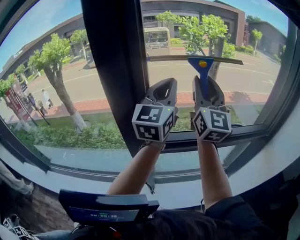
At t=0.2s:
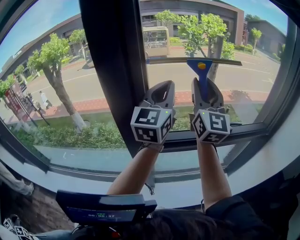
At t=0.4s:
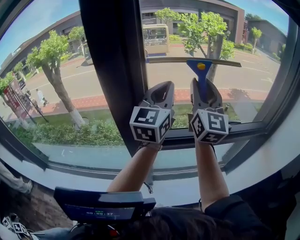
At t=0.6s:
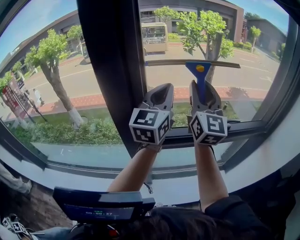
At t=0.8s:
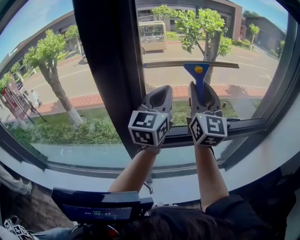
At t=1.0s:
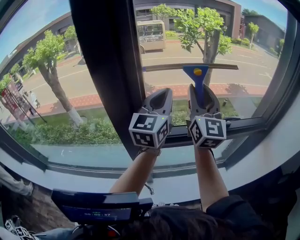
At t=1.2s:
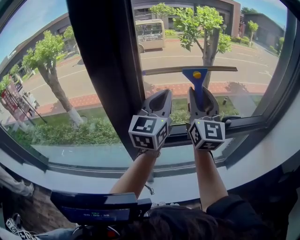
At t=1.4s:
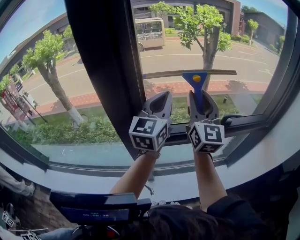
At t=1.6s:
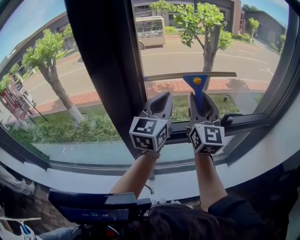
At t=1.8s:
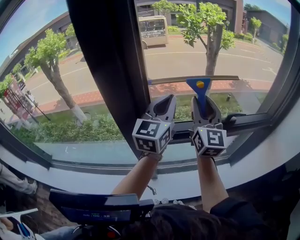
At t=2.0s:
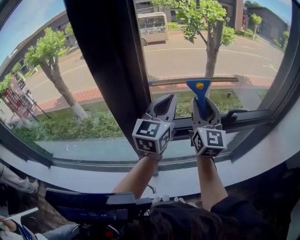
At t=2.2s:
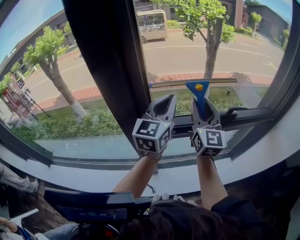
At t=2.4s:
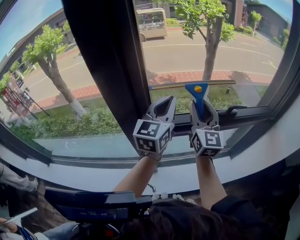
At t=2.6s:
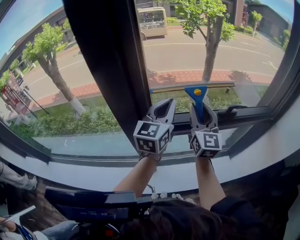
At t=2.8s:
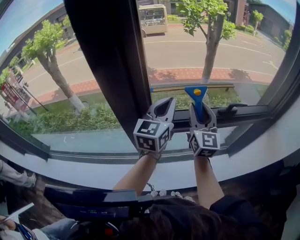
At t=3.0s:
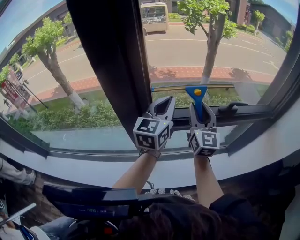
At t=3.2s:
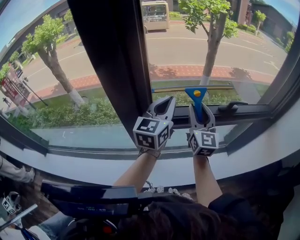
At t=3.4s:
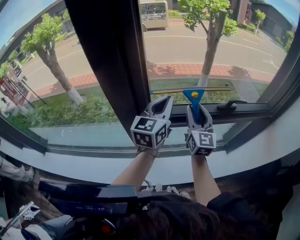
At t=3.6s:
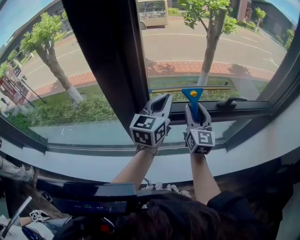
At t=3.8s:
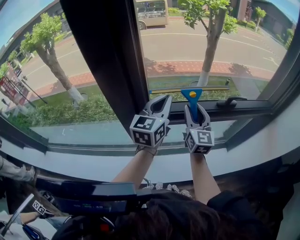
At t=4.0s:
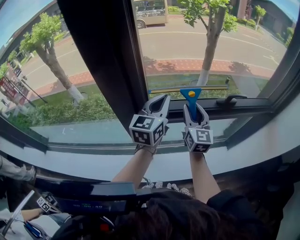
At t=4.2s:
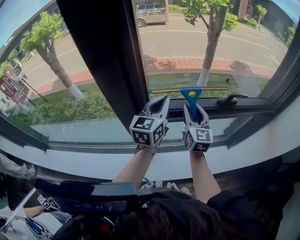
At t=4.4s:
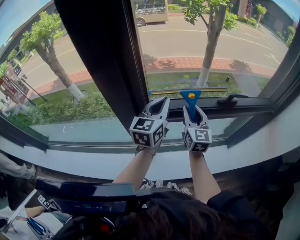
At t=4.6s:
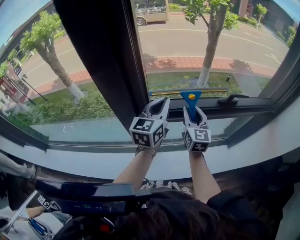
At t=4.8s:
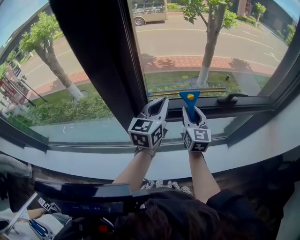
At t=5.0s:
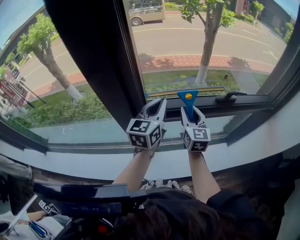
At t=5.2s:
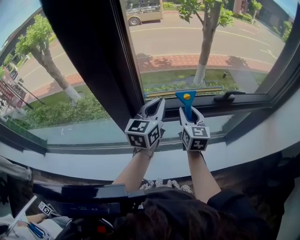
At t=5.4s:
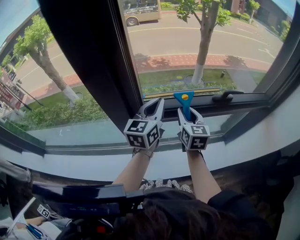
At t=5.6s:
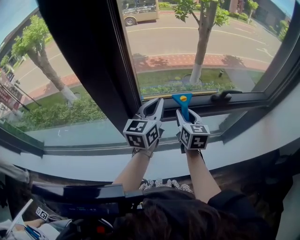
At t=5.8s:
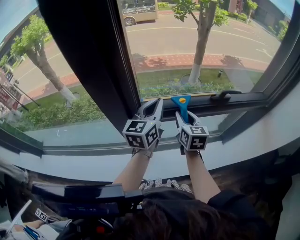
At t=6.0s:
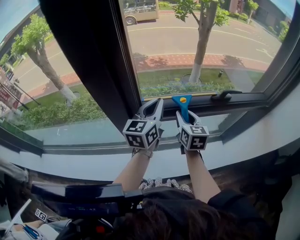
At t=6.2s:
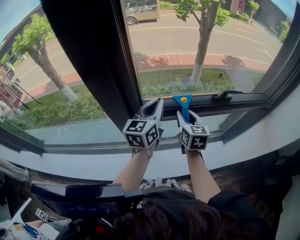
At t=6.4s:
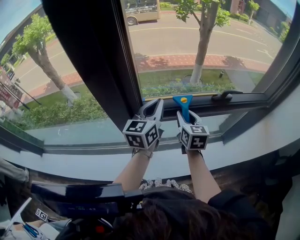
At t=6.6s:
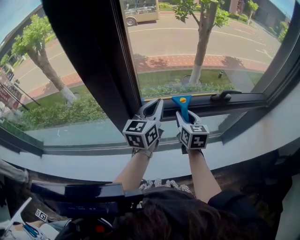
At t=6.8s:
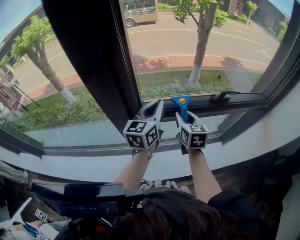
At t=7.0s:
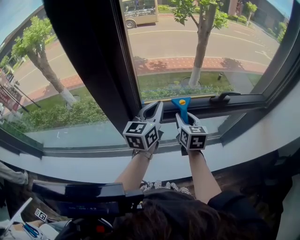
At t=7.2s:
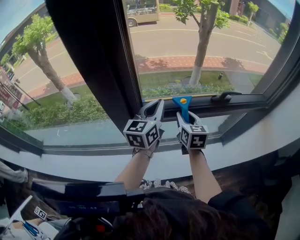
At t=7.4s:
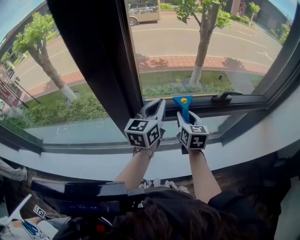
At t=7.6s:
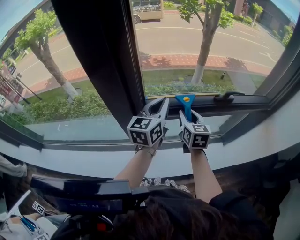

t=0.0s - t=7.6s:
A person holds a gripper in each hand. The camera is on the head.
t=0.0s - t=1.6s: The two grippers go some 10 cm downward.
t=1.6s - t=3.0s: Both grippers travel together downward, approximately 10 cm.
t=3.0s - t=4.6s: The left gripper travels downward by about 5 cm. Meanwhile the right gripper travels downward by roughly 10 cm.
t=4.6s - t=6.0s: The grippers make only small movements.
t=6.0s - t=7.6s: Both grippers stay put.

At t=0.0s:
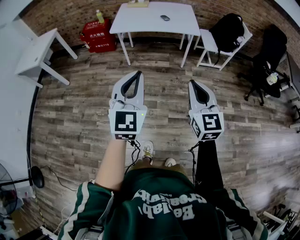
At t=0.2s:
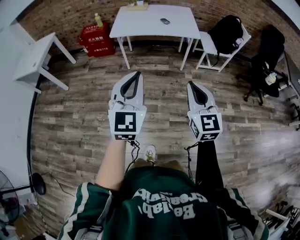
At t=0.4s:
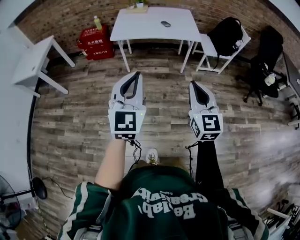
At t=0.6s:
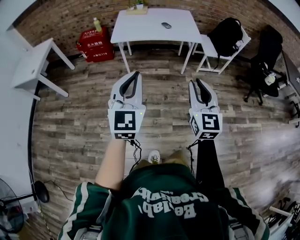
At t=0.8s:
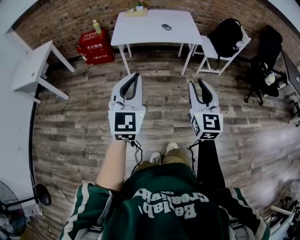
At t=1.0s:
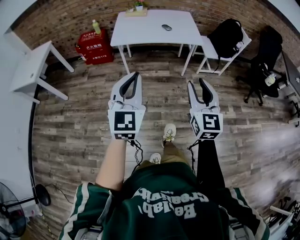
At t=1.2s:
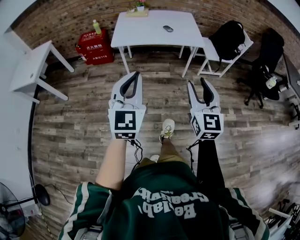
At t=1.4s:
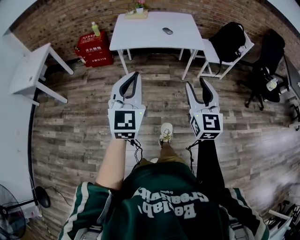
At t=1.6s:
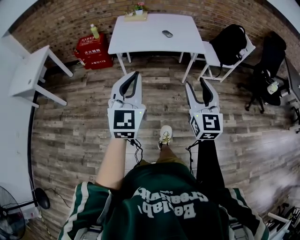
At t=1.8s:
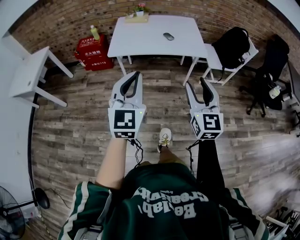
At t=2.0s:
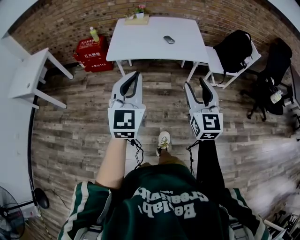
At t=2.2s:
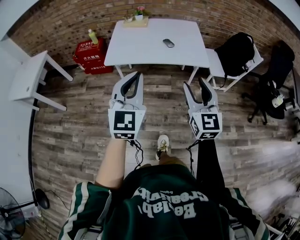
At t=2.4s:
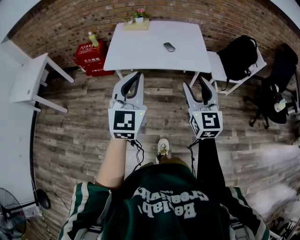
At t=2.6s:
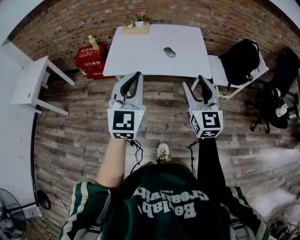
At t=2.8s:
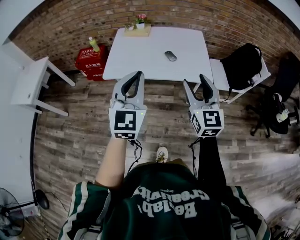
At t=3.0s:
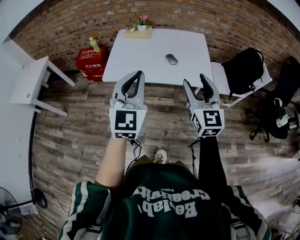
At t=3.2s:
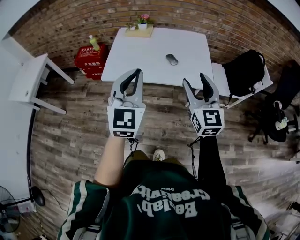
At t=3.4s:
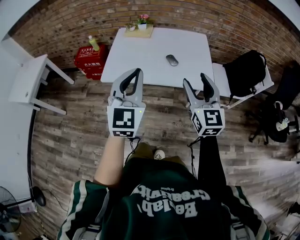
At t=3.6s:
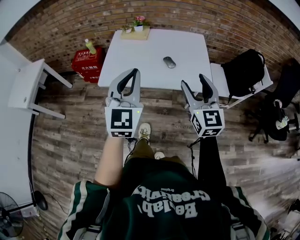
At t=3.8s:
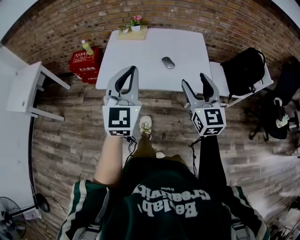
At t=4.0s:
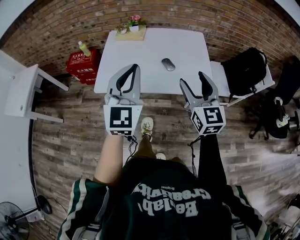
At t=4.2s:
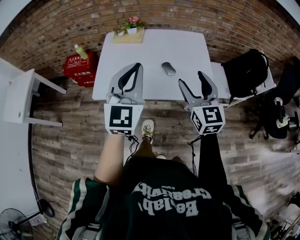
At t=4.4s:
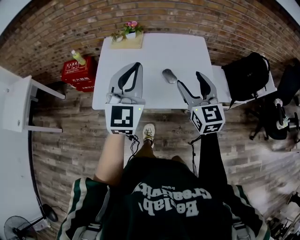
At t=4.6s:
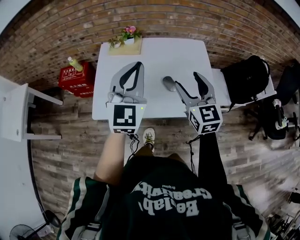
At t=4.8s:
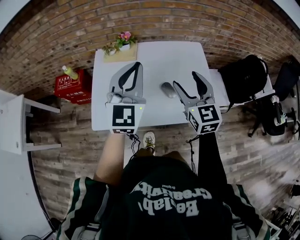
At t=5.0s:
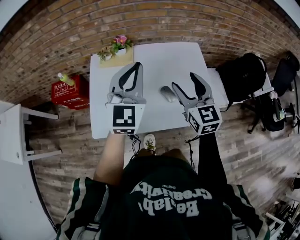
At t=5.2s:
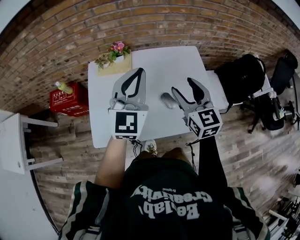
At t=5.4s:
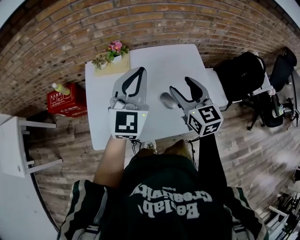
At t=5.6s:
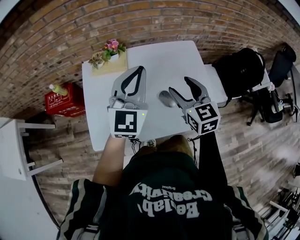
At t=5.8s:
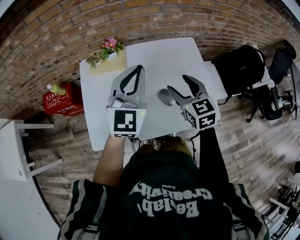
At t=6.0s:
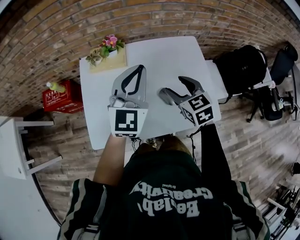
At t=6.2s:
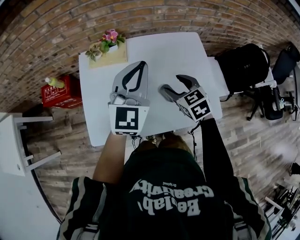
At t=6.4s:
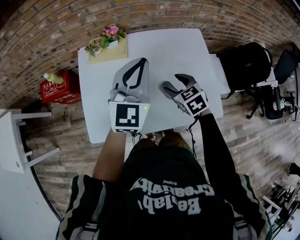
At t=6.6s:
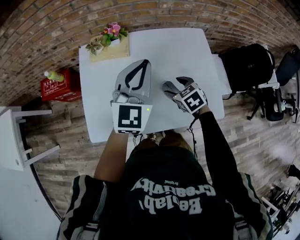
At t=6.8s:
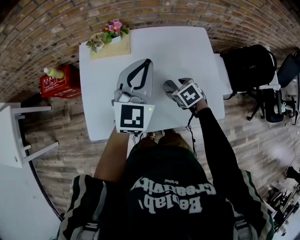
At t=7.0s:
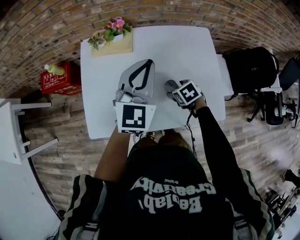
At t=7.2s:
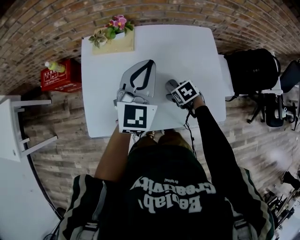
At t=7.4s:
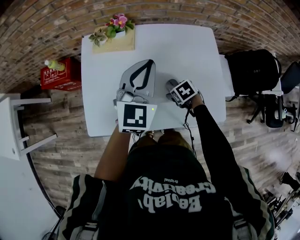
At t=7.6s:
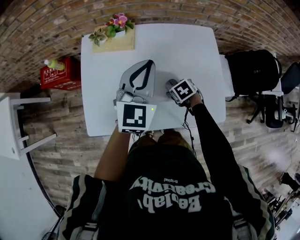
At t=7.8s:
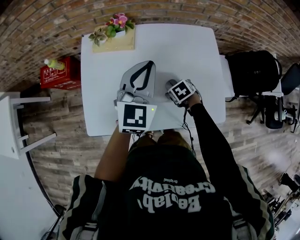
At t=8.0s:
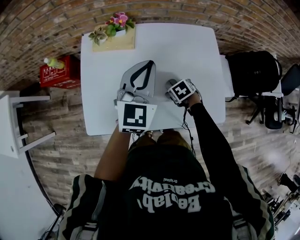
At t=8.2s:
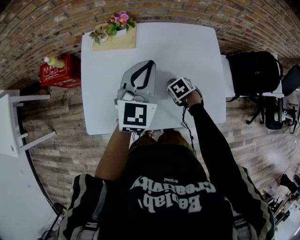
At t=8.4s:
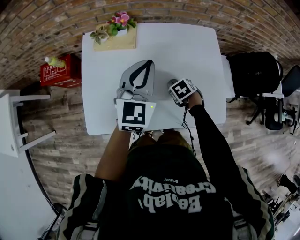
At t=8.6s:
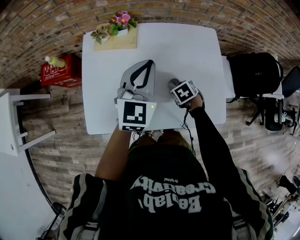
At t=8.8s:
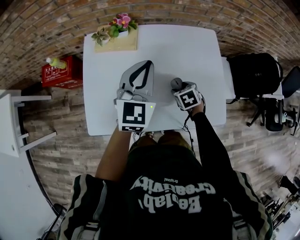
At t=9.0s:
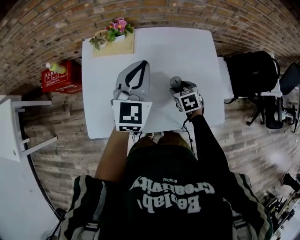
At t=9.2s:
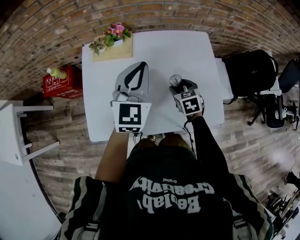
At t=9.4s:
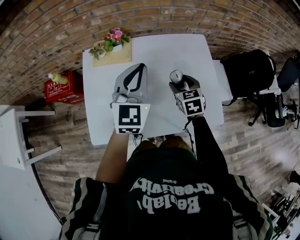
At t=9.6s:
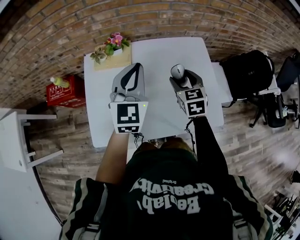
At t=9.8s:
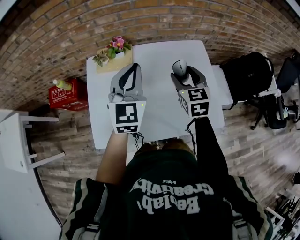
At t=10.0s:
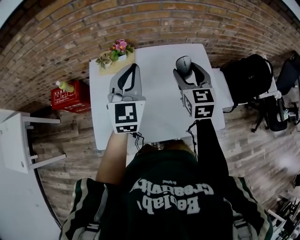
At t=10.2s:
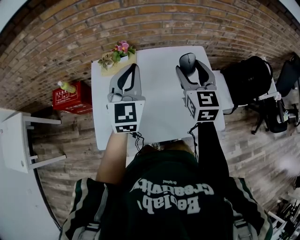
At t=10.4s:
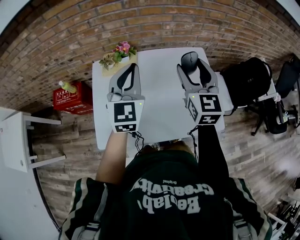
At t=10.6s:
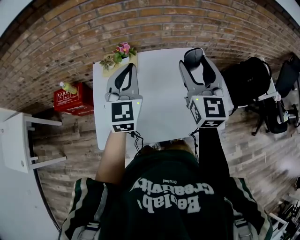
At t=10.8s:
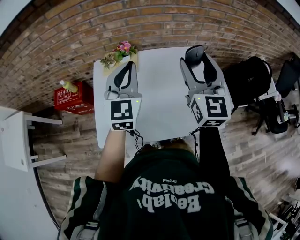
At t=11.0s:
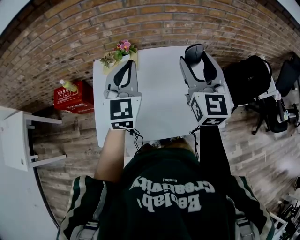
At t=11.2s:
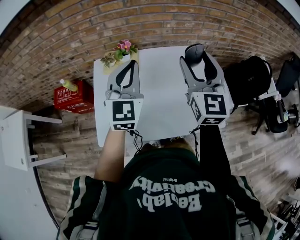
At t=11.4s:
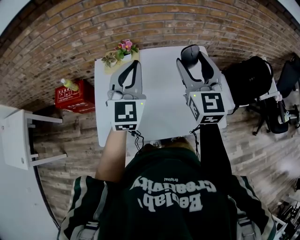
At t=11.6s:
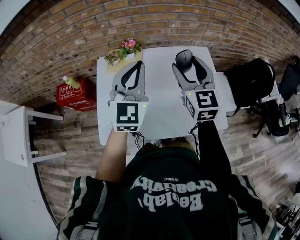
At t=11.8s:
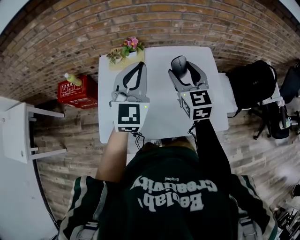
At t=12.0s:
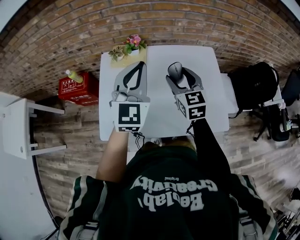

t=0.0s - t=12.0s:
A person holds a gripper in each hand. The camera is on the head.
t=0.0s - t=1.6s: The right gripper is displaced forward by some 20 cm, and opens, while the left gripper is displaced forward and to the left by approximately 20 cm.
t=1.6s - t=3.0s: The grippers both shift forward by about 30 cm.
t=3.0s - t=4.4s: Both grippers travel together forward, approximately 25 cm.
t=4.4s - t=6.0s: The left gripper shifts approximately 20 cm forward; the right gripper heads forward and downward, covering some 20 cm, and changes its angle by roughly 30 degrees.
t=6.0s - t=7.6s: The right gripper heads downward, covering about 25 cm, and tilts its fingers approximately 40 degrees downward. Meanwhile the left gripper shifts approximately 5 cm downward.
t=7.6s - t=9.0s: The right gripper ends up approximately 5 cm from where it was, and rotates approximately 20 degrees.
t=9.0s - t=10.4s: The left gripper is displaced upward by approximately 10 cm. The right gripper heads upward, covering about 35 cm, and angles its fingers upward, by about 50 degrees.
t=10.4s - t=12.0s: The right gripper travels downward and to the left by roughly 15 cm.

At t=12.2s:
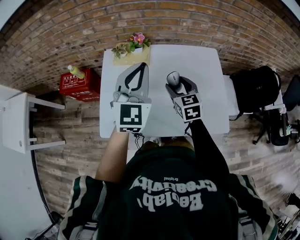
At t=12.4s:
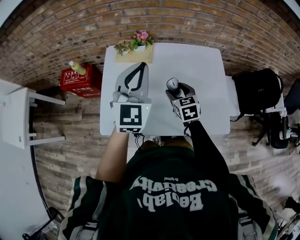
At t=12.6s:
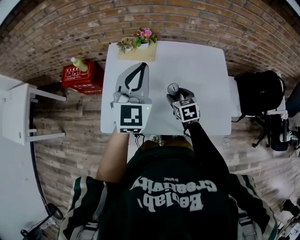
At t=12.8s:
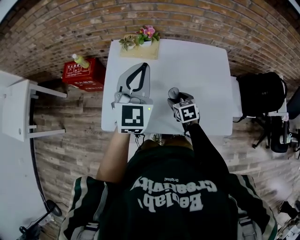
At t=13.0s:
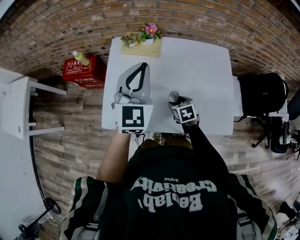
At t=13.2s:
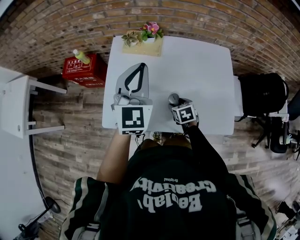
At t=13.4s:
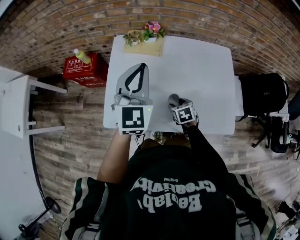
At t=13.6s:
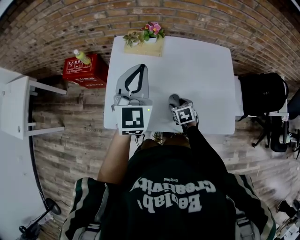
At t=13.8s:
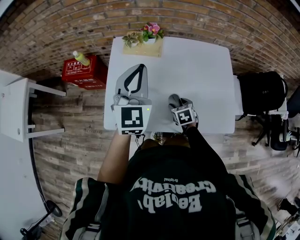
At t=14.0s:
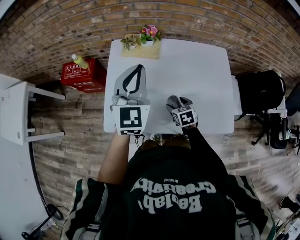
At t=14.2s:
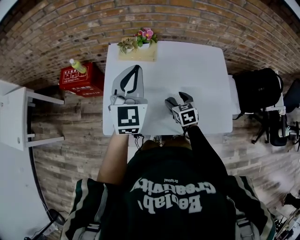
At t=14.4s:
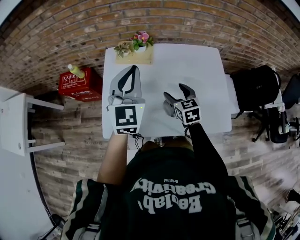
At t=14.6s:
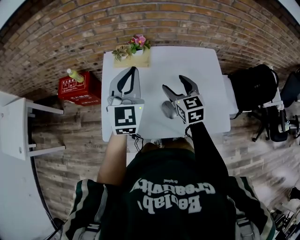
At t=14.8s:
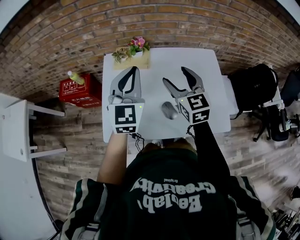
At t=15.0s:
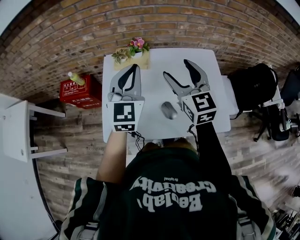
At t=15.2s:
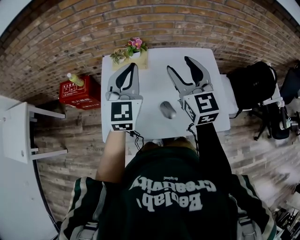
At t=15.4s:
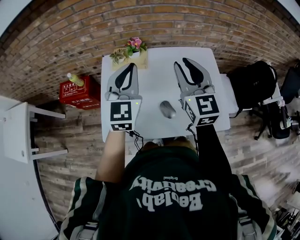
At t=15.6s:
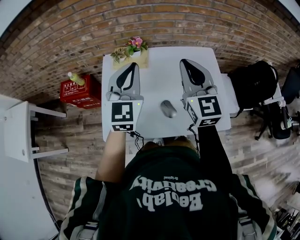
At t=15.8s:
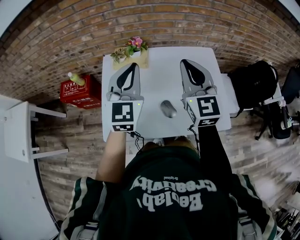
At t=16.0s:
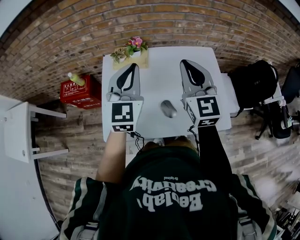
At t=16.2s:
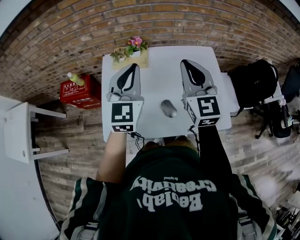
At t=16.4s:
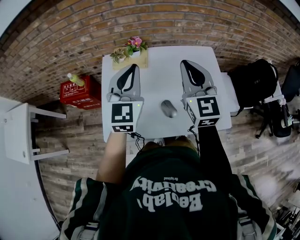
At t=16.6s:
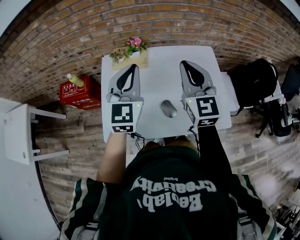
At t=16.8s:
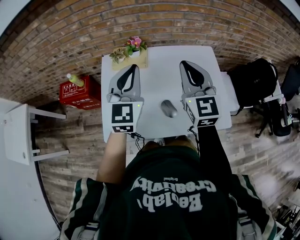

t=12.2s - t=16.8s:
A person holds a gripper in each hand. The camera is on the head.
t=12.2s - t=13.8s: The left gripper shifts some 5 cm to the left, while the right gripper goes roughly 20 cm downward, and changes its angle by approximately 30 degrees.
t=13.8s - t=15.2s: The left gripper ends up about 5 cm from where it was; the right gripper goes roughly 40 cm upward, and angles its fingers upward, by about 50 degrees.
t=15.2s - t=16.8s: The right gripper closes its fingers.
